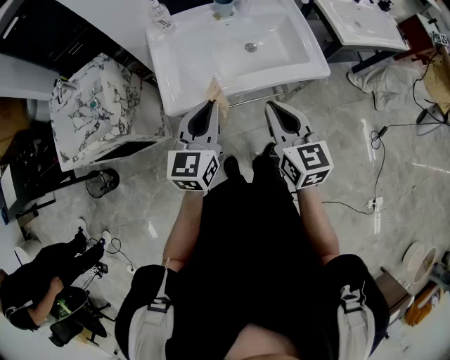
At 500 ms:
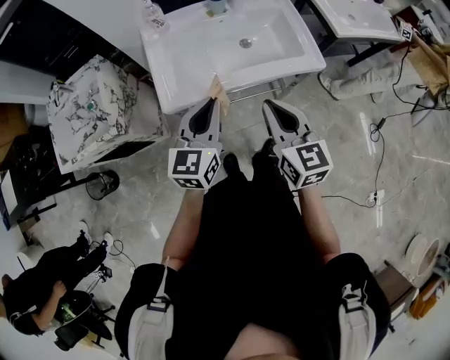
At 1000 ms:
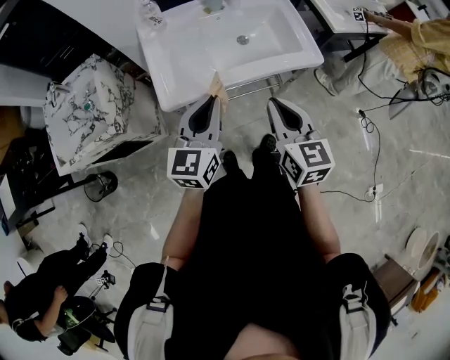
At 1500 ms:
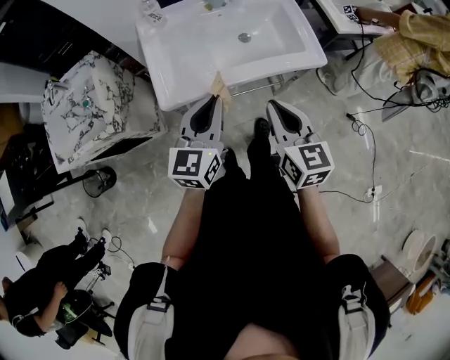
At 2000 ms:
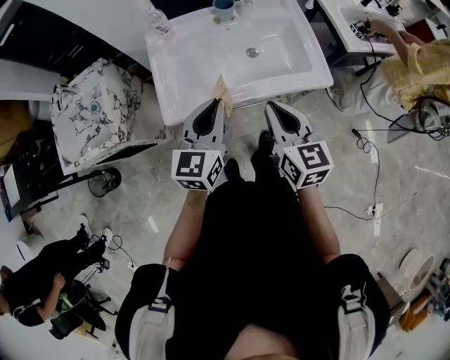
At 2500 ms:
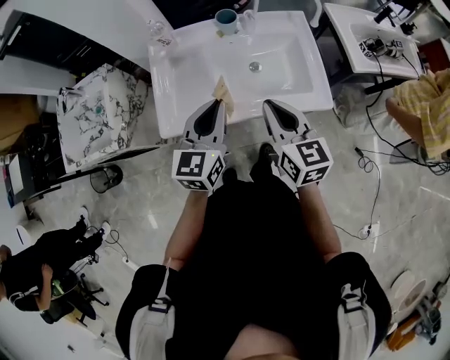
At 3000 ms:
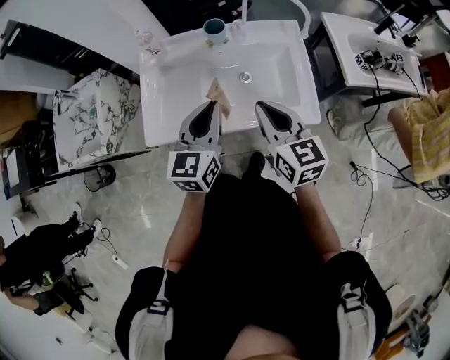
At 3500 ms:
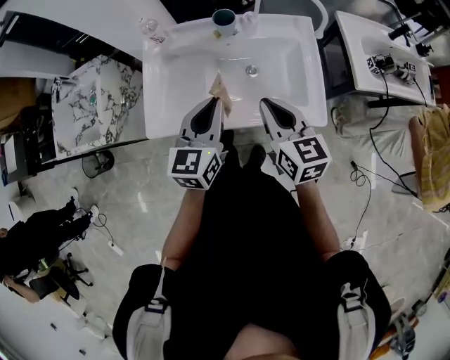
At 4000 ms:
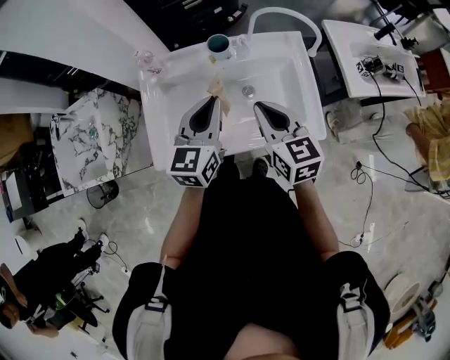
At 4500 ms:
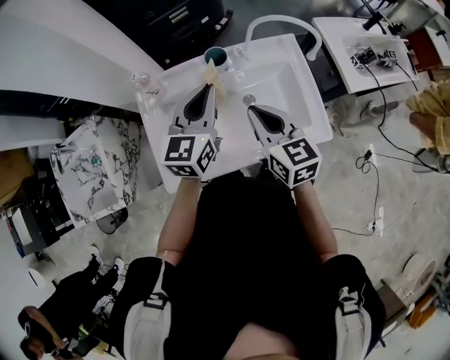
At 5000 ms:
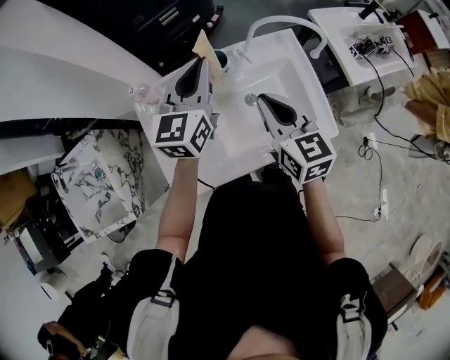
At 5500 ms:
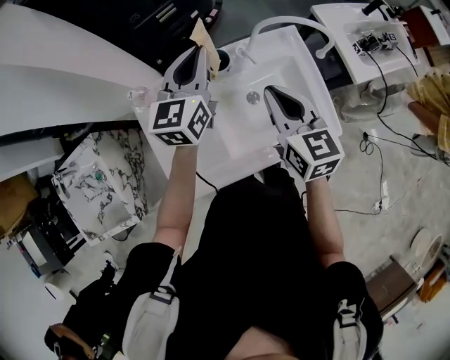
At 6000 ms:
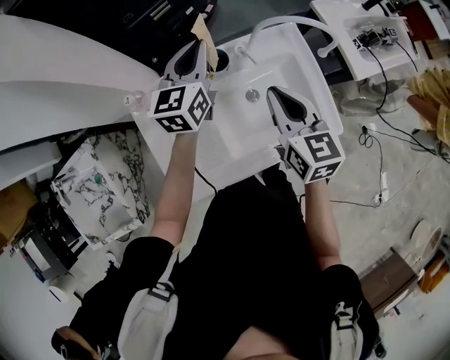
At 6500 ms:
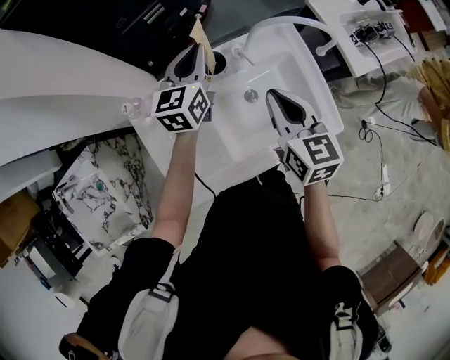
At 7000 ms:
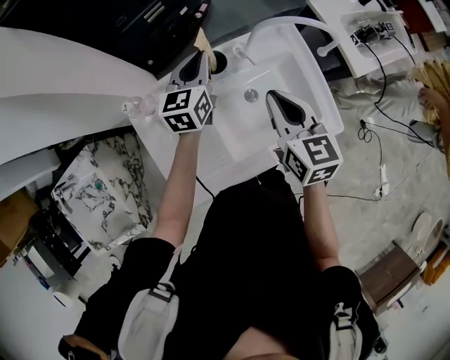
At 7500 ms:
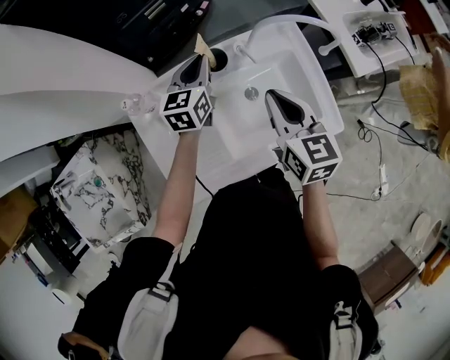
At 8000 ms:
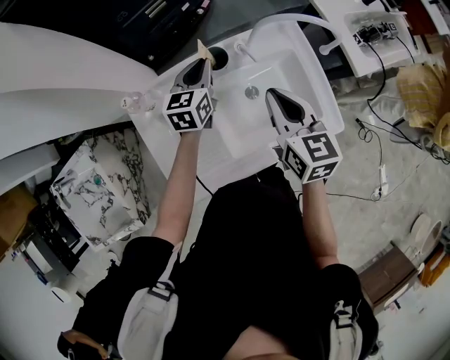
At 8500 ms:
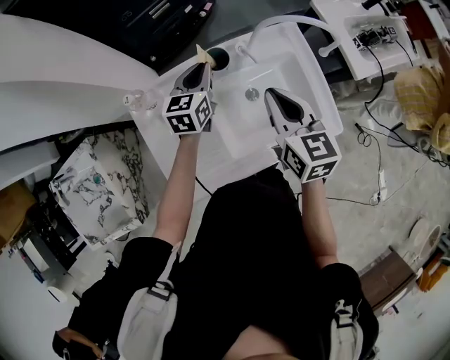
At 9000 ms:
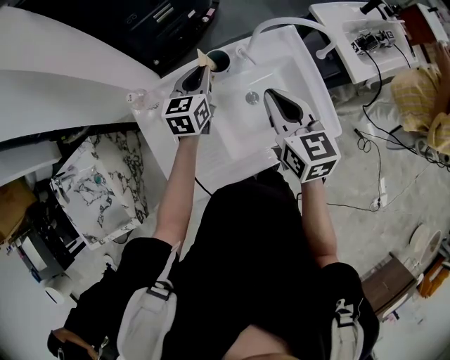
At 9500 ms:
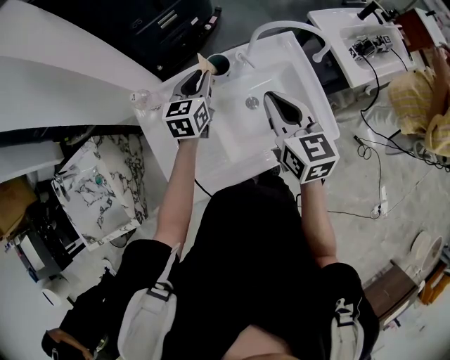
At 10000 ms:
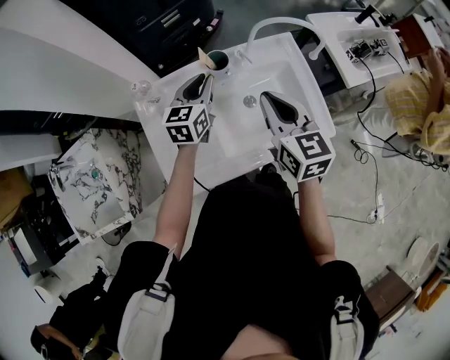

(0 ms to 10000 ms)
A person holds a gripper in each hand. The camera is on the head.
0 ms - 2000 ms: The left gripper changes place by roughly 5 cm. The right gripper goes some 5 cm forward.
2000 ms - 4000 ms: Both grippers travel together forward, some 20 cm.
4000 ms - 6000 ms: The left gripper moves forward, roughly 25 cm. The right gripper shifts about 10 cm forward.
6000 ms - 8000 ms: The left gripper travels downward by some 10 cm.
8000 ms - 10000 ms: The right gripper moves roughly 5 cm. Meanwhile the left gripper moves backward, some 5 cm.

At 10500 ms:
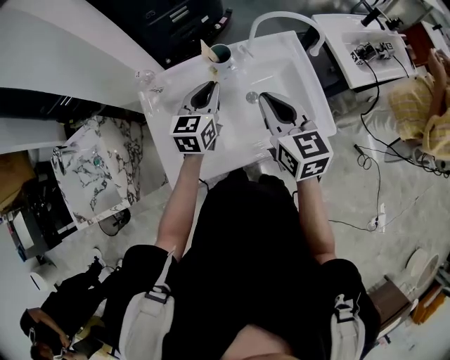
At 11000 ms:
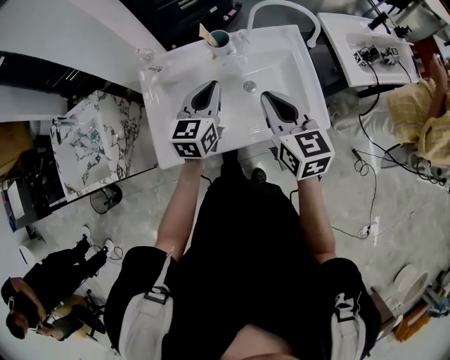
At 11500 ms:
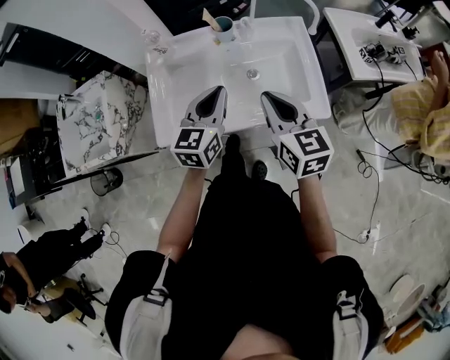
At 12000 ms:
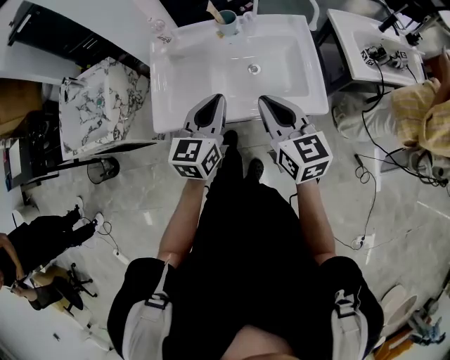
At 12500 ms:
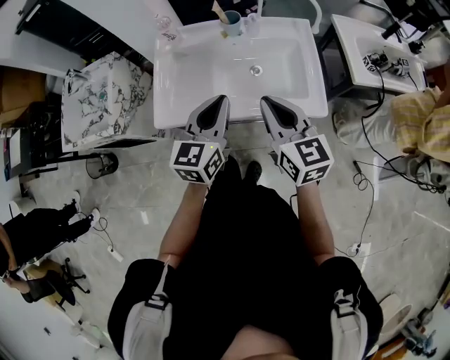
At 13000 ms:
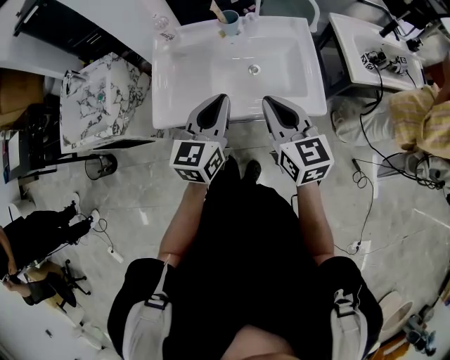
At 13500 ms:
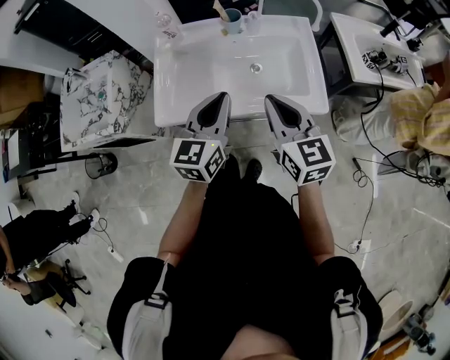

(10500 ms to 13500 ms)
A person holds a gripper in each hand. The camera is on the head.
10500 ms - 12000 ms: The two grippers go about 20 cm backward.
12000 ms - 13500 ms: There are only small adjustments of the grippers.

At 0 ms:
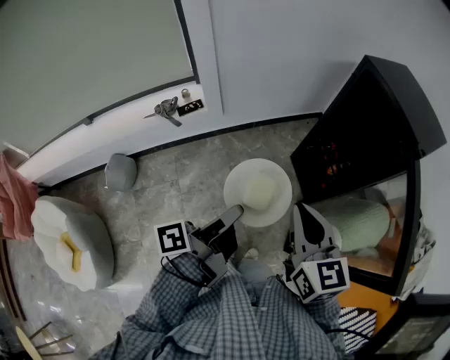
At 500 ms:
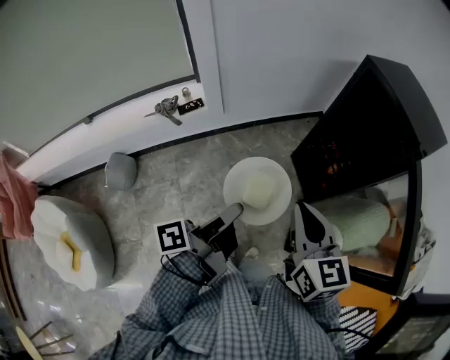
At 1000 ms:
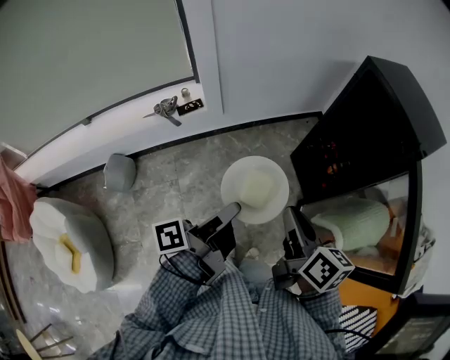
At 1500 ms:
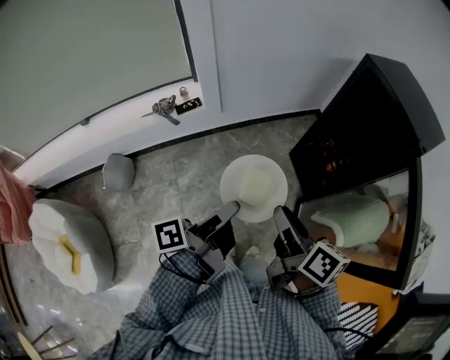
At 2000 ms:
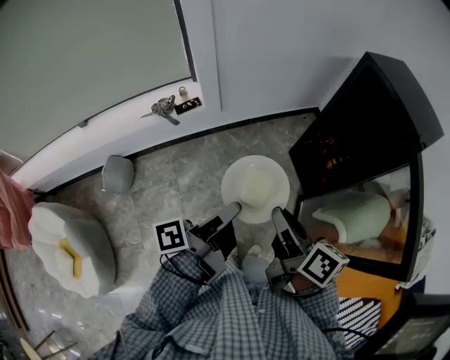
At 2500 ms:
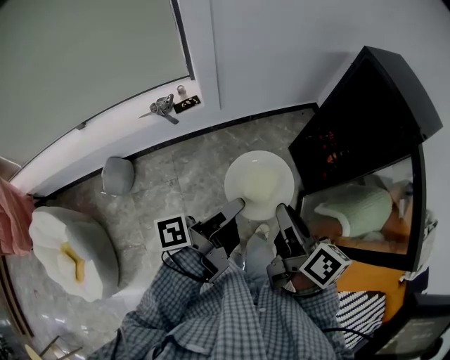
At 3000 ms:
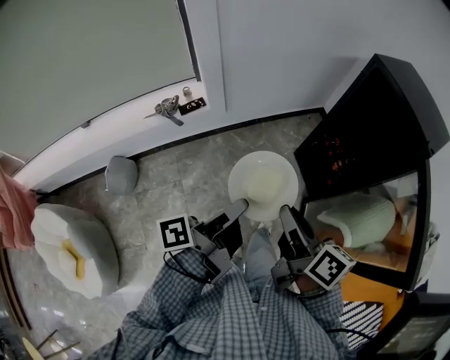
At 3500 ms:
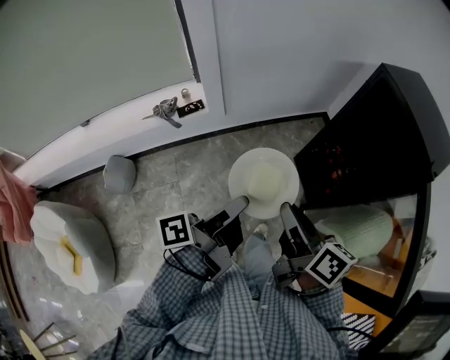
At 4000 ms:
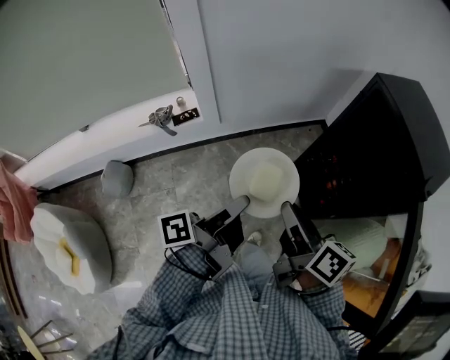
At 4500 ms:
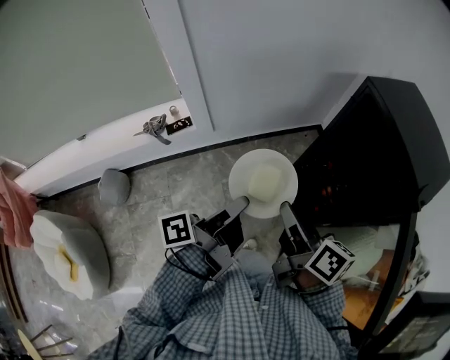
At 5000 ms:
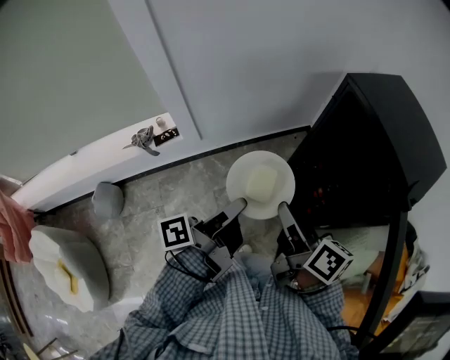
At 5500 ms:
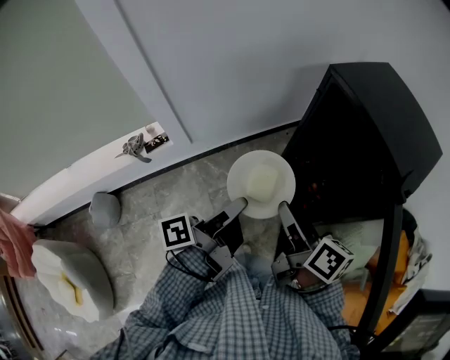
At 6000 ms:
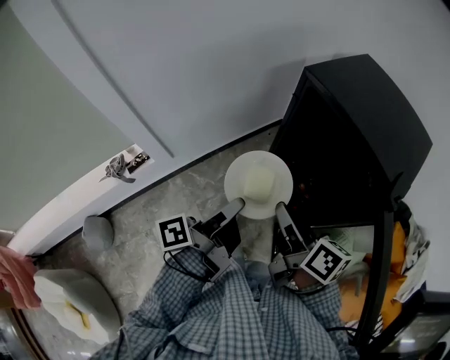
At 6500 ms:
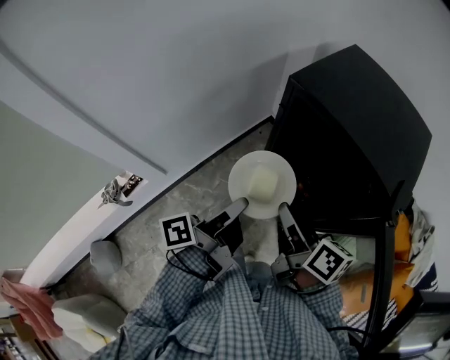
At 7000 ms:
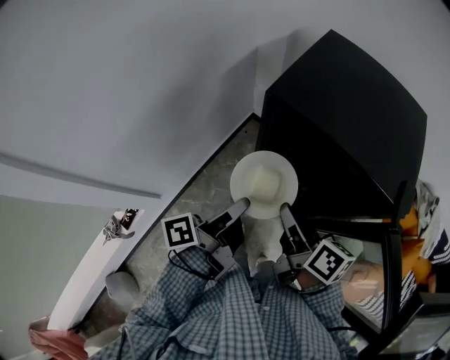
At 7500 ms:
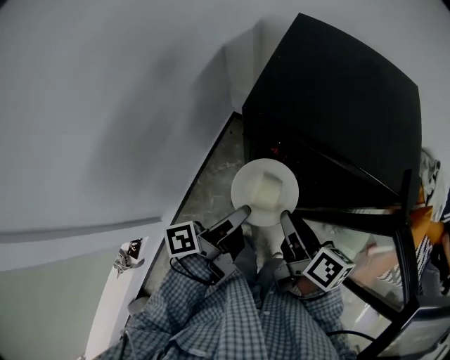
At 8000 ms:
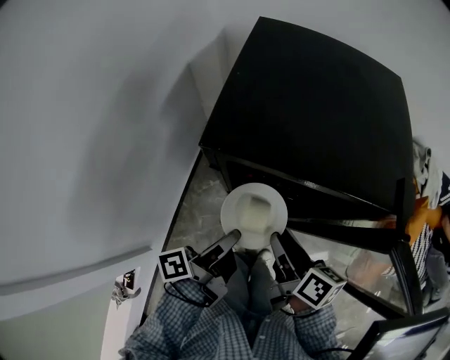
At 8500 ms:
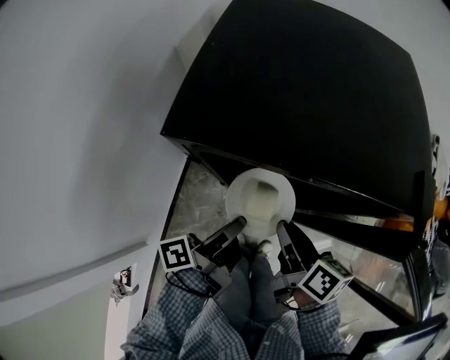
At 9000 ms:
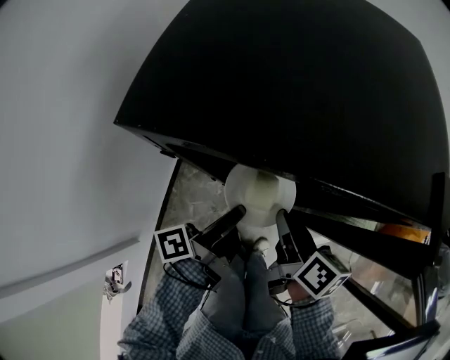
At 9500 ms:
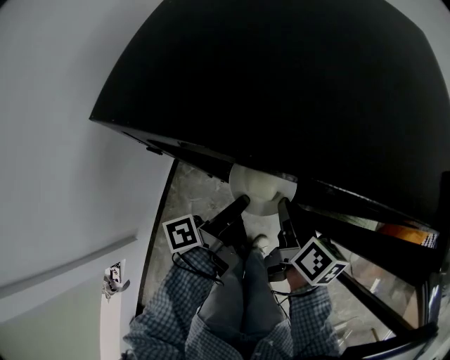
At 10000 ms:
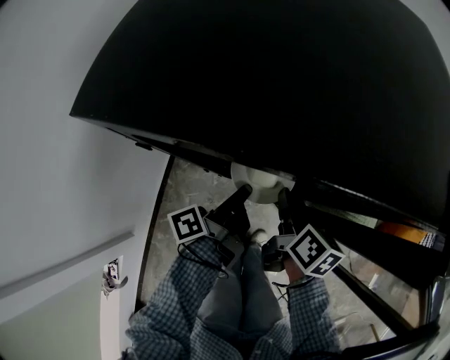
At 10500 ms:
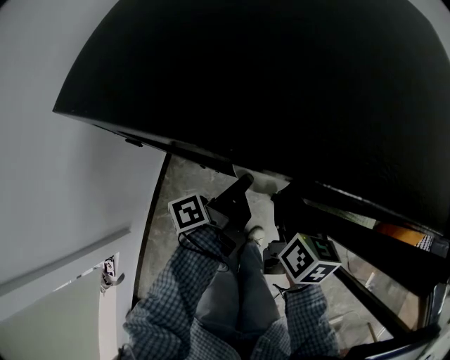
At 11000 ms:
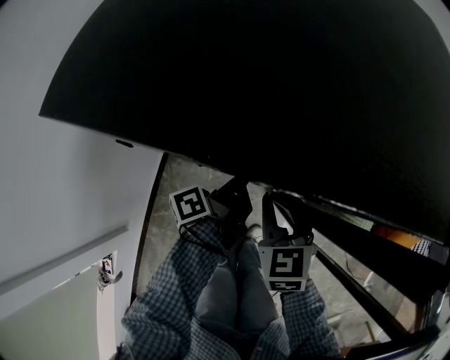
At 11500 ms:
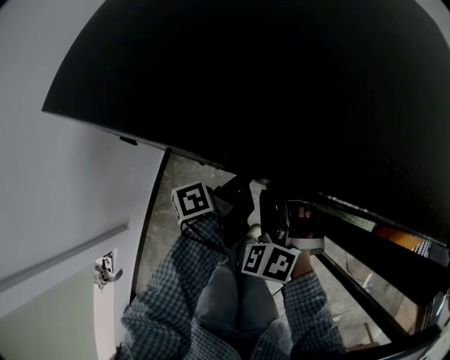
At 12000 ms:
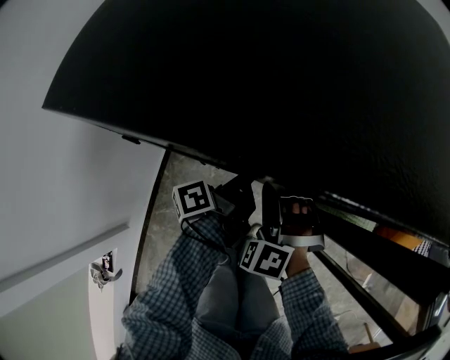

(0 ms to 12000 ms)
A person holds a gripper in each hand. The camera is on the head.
0 ms - 2000 ms: The right gripper changes place by roughly 10 cm, and twists about 50 degrees clockwise, seen from behind.
2000 ms - 4000 ms: The right gripper ends up roughly 15 cm from where it was.
4000 ms - 6000 ms: The right gripper shifts by roughly 15 cm.
6000 ms - 8000 ms: The right gripper moves roughly 15 cm, and rotates approximately 40 degrees.
8000 ms - 10000 ms: The right gripper heads downward, covering approximately 15 cm.
10000 ms - 12000 ms: The right gripper ends up some 5 cm from where it was, and twists about 120 degrees counterclockwise, seen from behind.

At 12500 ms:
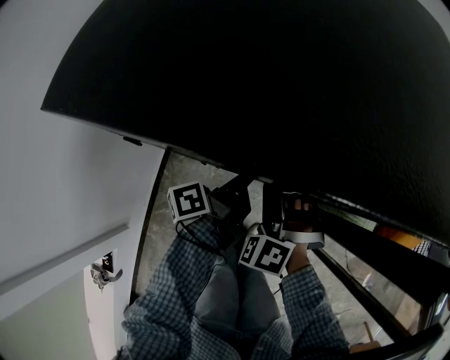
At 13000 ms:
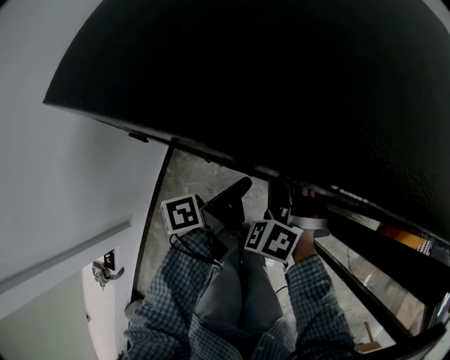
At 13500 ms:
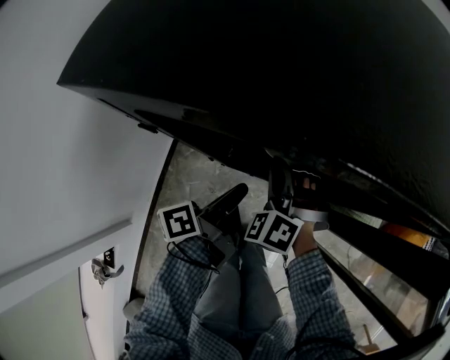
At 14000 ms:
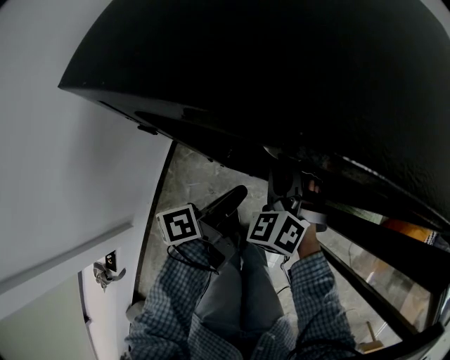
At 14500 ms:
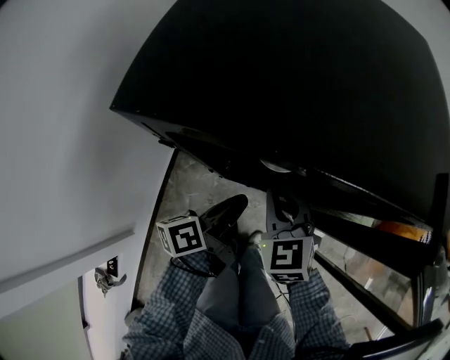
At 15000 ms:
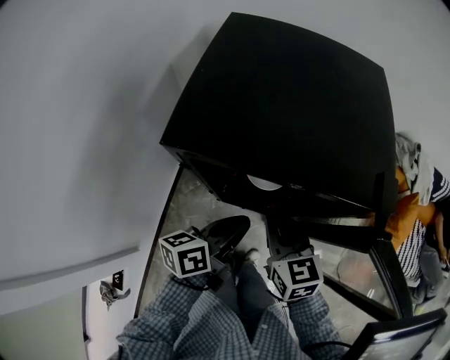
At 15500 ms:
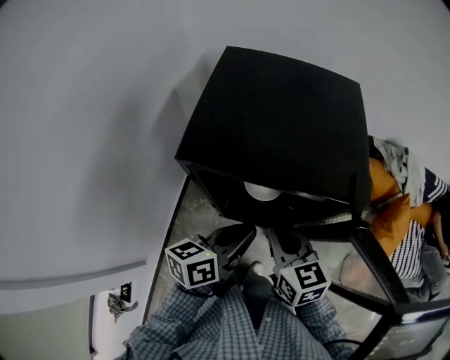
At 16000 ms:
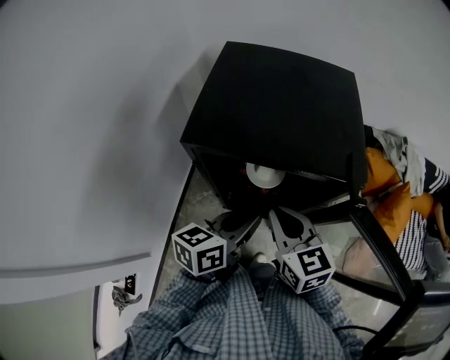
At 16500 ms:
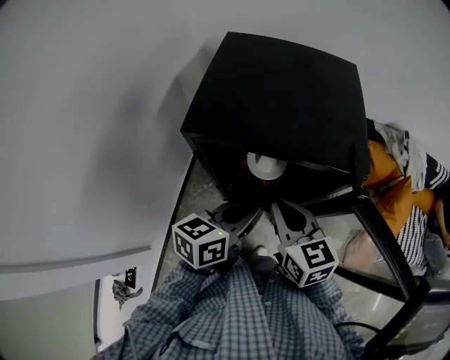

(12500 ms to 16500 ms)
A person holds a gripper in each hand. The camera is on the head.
12500 ms - 14500 ms: The right gripper shifts roughly 10 cm upward, and rotates around the line of its fingers by some 50 degrees, clockwise from behind.
14500 ms - 16500 ms: The right gripper shifts about 15 cm upward, and swivels roughly 30 degrees.
